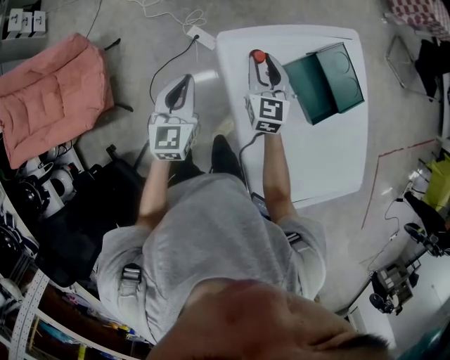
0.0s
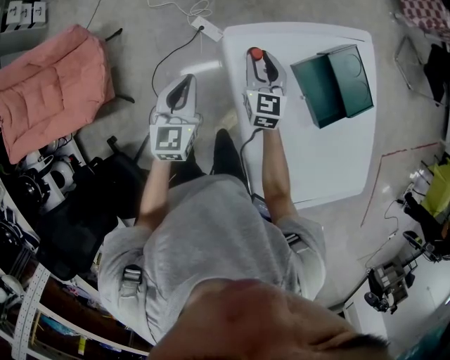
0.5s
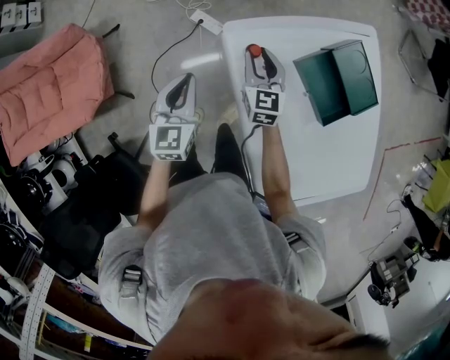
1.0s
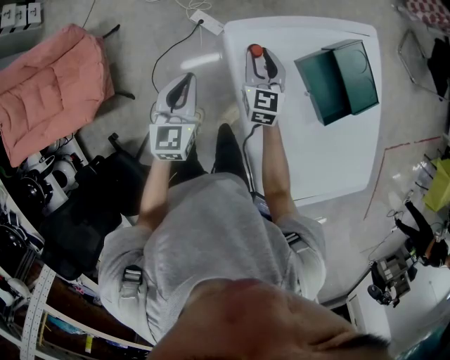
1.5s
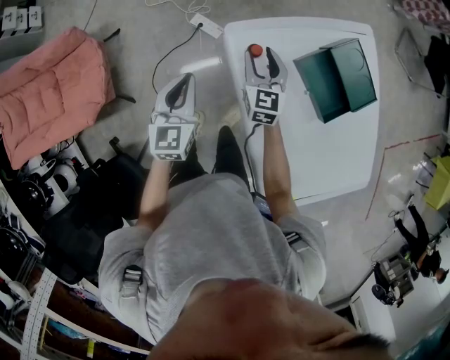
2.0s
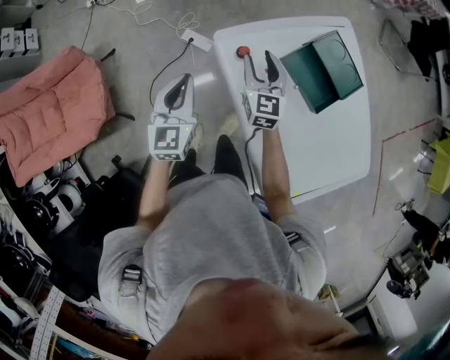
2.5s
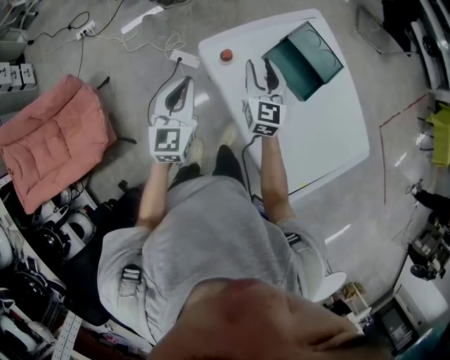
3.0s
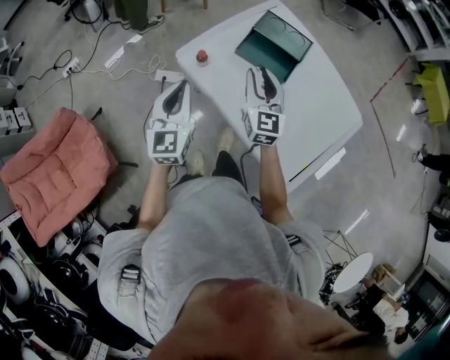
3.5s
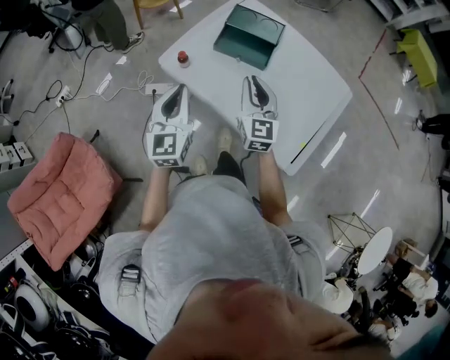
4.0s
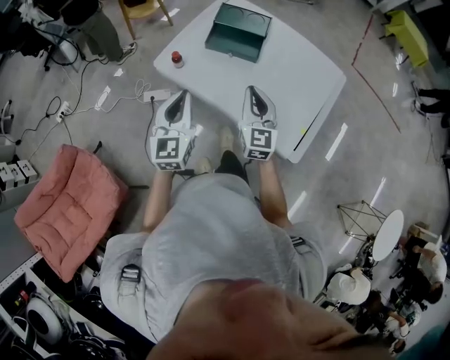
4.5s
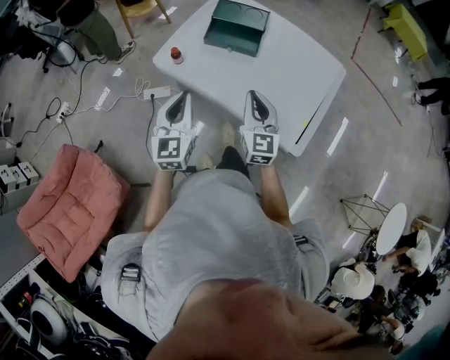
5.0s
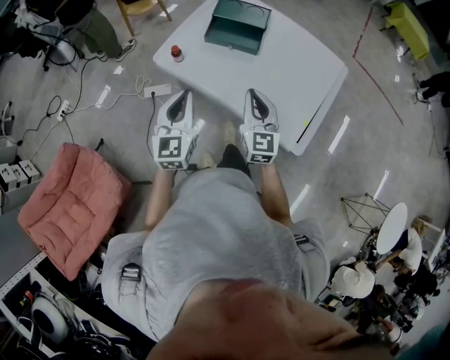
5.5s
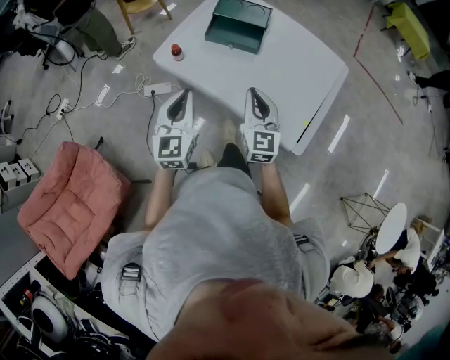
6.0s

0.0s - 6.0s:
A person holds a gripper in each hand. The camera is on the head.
0.0s - 2.0s: The right gripper shifts approximately 5 cm downward.
2.0s - 4.0s: The right gripper changes place by about 30 cm, turns by roughly 40 degrees, and closes up; the left gripper moves approximately 20 cm, and swivels about 30 degrees.
4.0s - 6.0s: The left gripper heads backward, covering about 5 cm. The right gripper shifts about 10 cm backward.

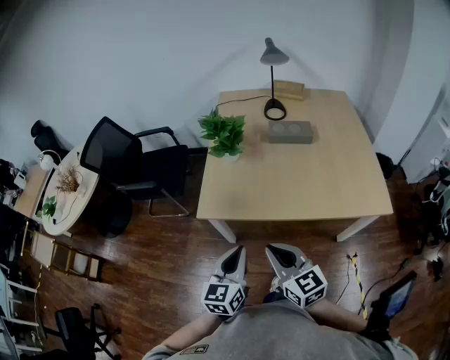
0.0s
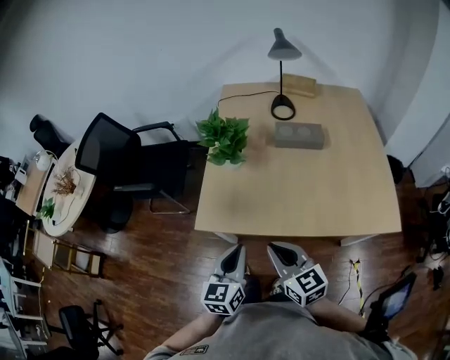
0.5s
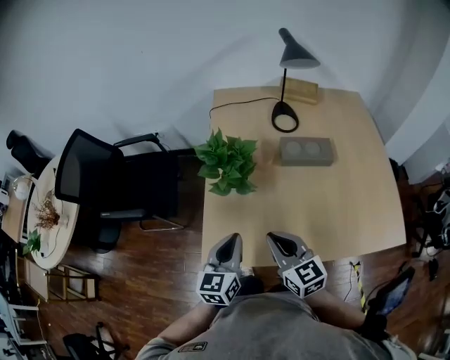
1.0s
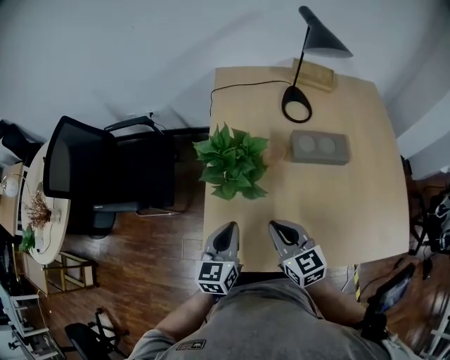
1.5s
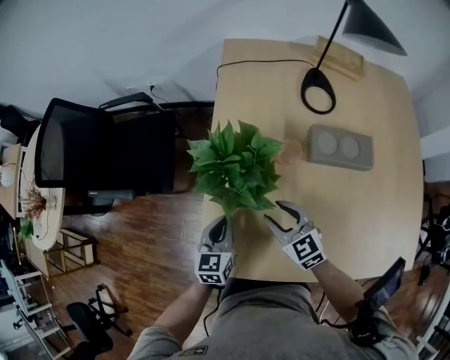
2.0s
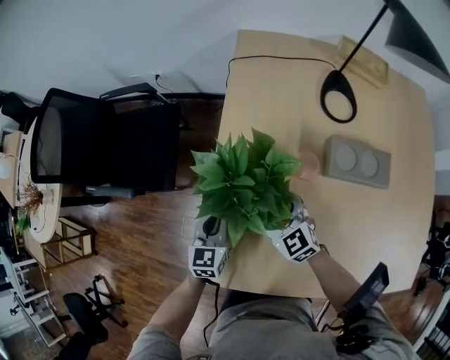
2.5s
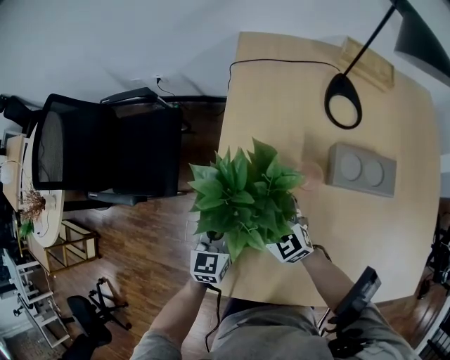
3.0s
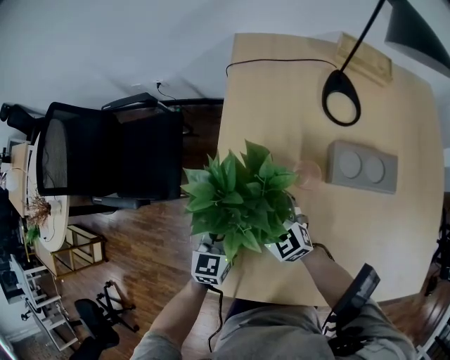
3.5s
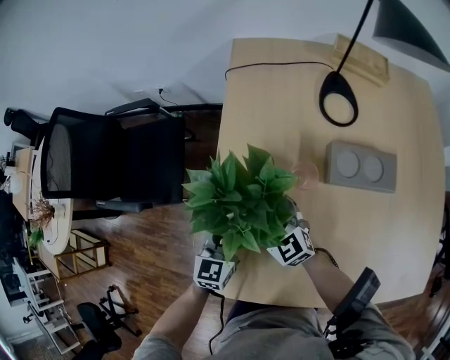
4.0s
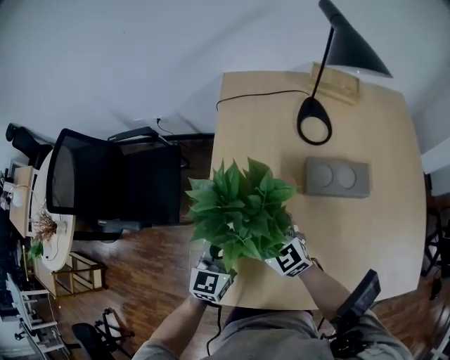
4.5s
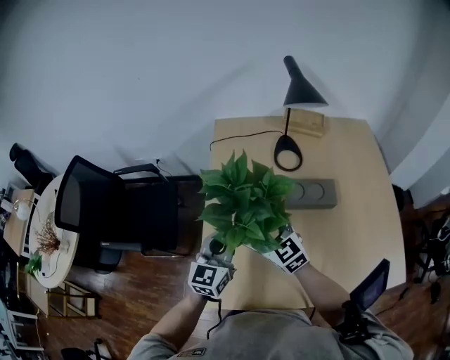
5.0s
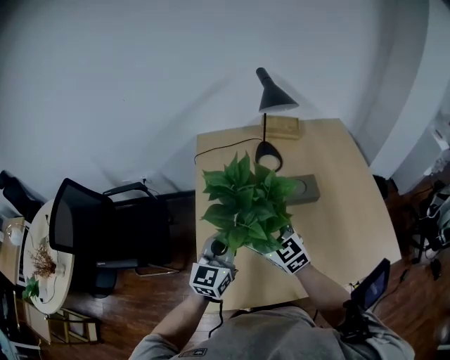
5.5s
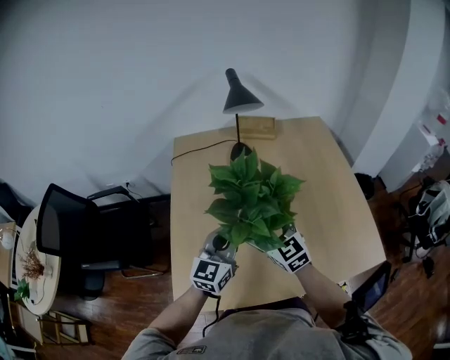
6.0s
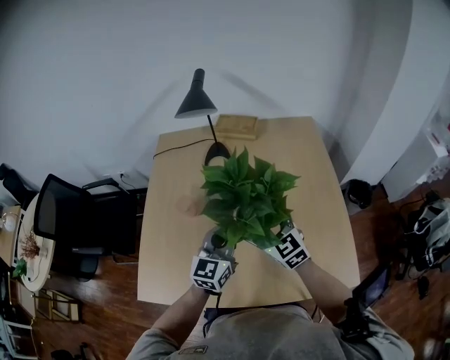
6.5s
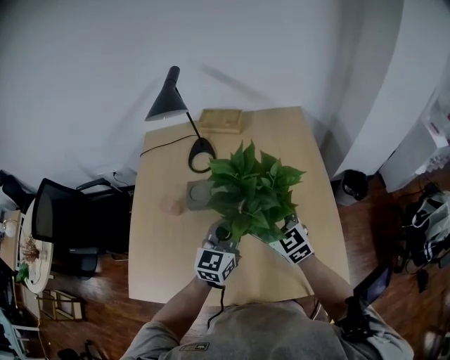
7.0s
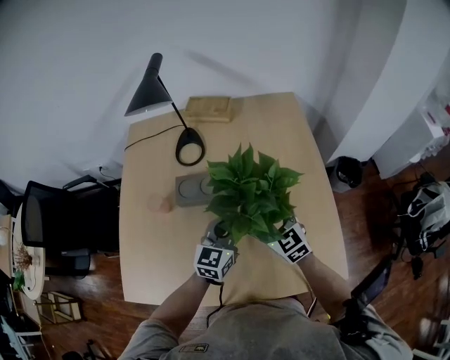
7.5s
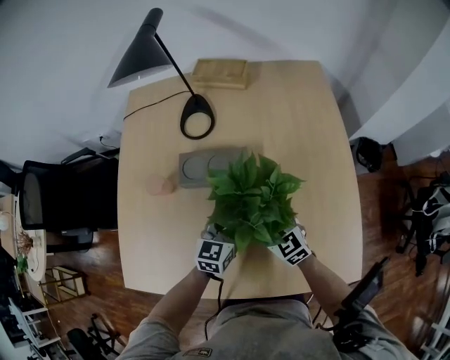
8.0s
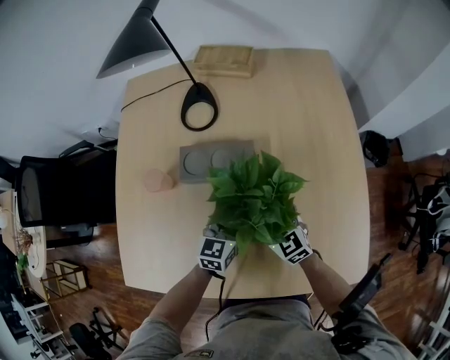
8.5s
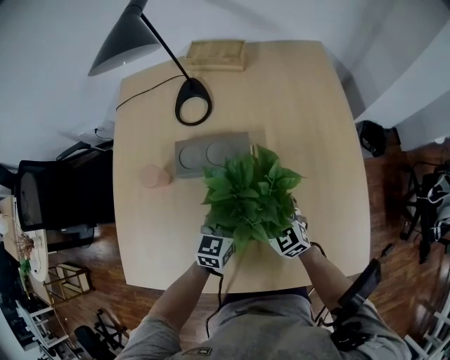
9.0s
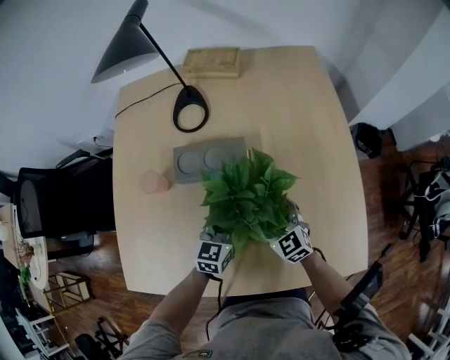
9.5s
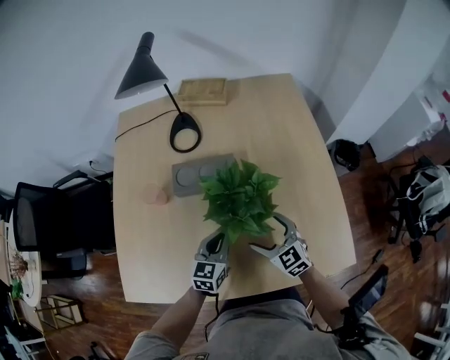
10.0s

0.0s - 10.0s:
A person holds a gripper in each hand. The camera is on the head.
0.0s - 2.0s: The left gripper goes about 40 cm forward and downward; the right gripper travels forward by roughly 40 cm, and changes its angle by approximately 20 degrees.
2.0s - 4.0s: The right gripper is displaced forward by approximately 10 cm, and opens up. The left gripper travels forward by about 5 cm.
4.0s - 6.0s: Both grippers travel together to the right and upward, approximately 30 cm. The left gripper swivels roughly 30 degrees, while the right gripper turns by some 20 degrees.
6.0s - 8.0s: The two grippers go about 25 cm to the right and downward. The left gripper turns by approximately 20 degrees.
8.0s - 10.0s: Both grippers move backward, approximately 5 cm.

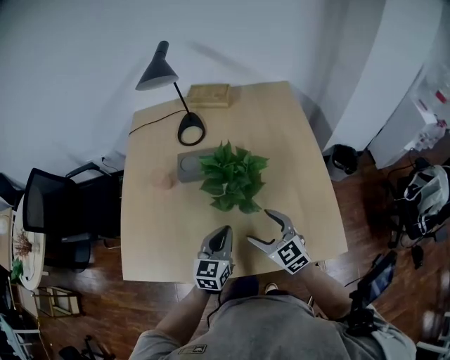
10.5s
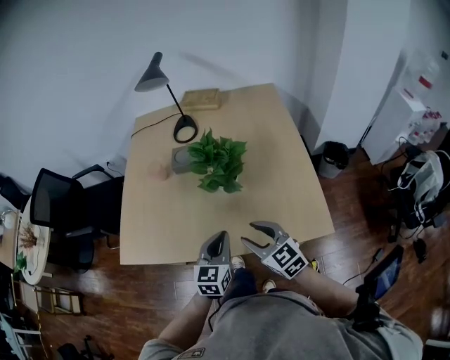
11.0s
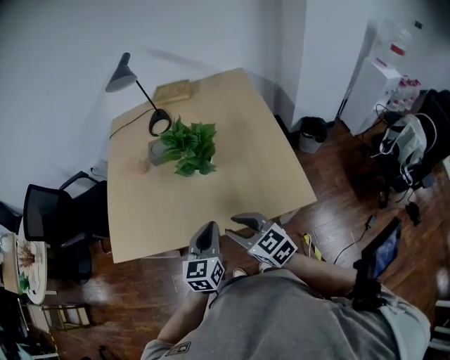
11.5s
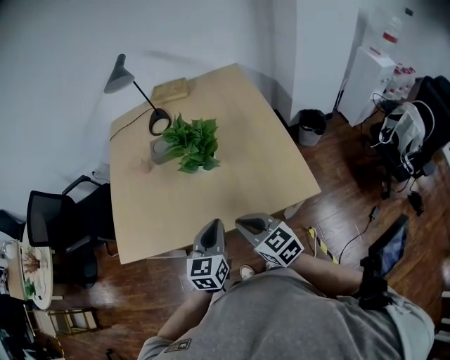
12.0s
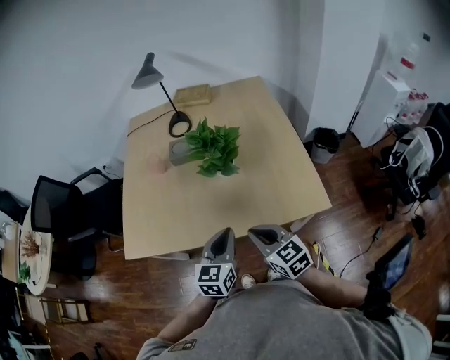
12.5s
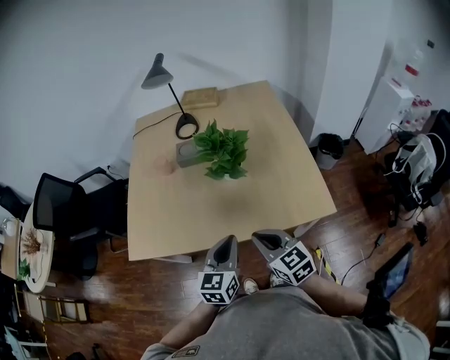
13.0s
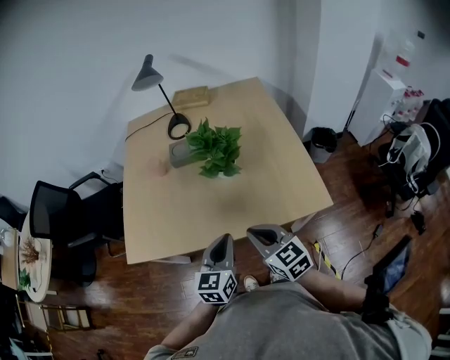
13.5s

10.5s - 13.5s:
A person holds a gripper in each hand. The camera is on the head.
10.5s - 12.0s: Both grippers move backward, roughly 15 cm. The right gripper closes its fingers.
12.0s - 13.5s: The grippers move only a little.

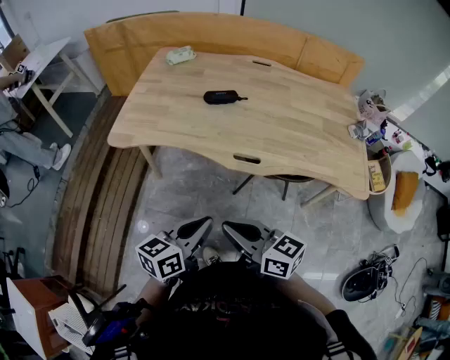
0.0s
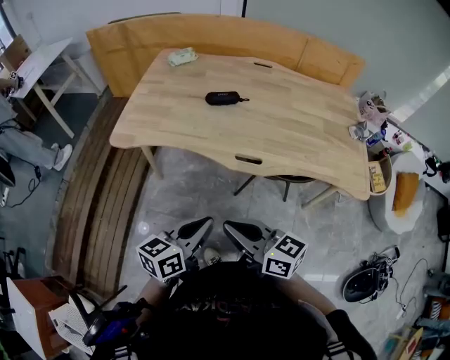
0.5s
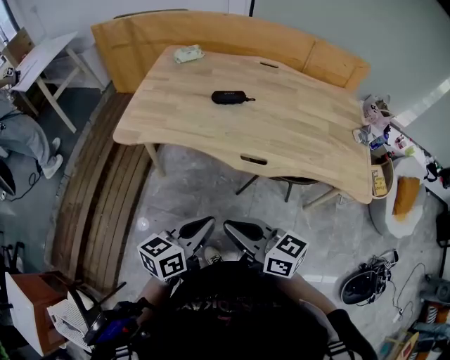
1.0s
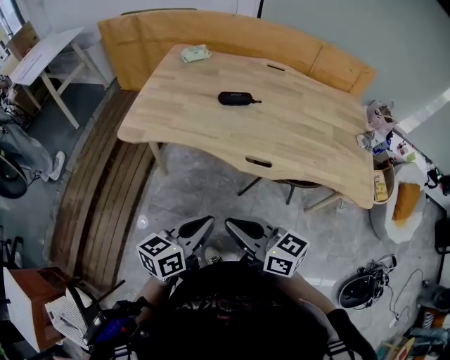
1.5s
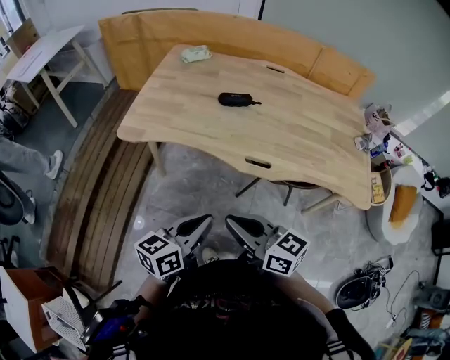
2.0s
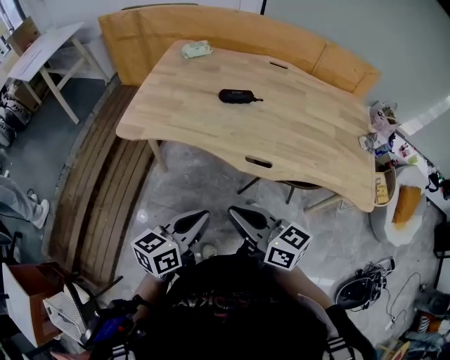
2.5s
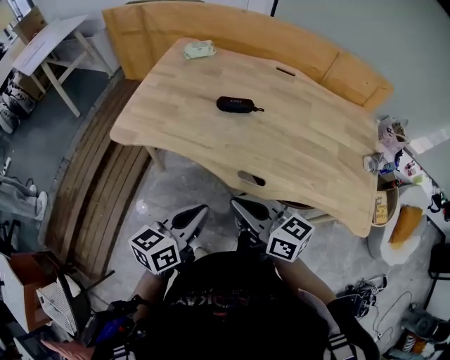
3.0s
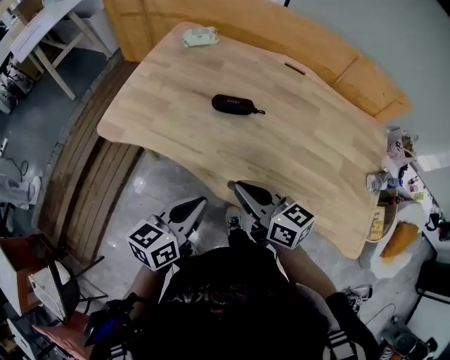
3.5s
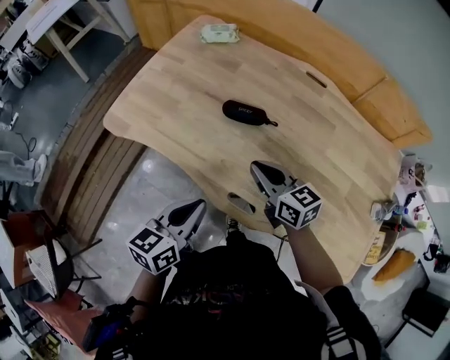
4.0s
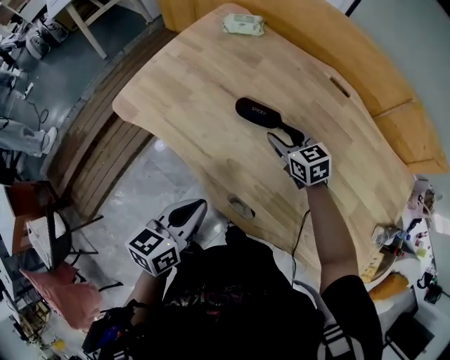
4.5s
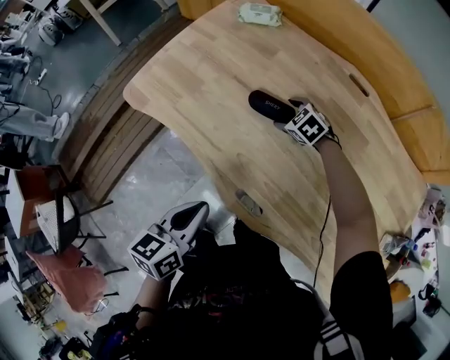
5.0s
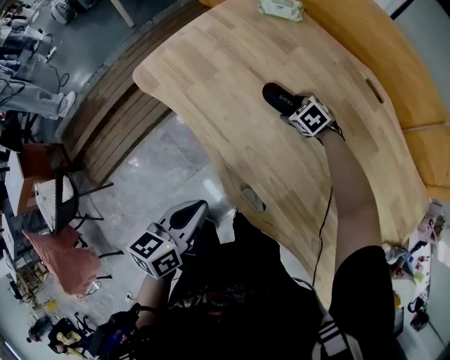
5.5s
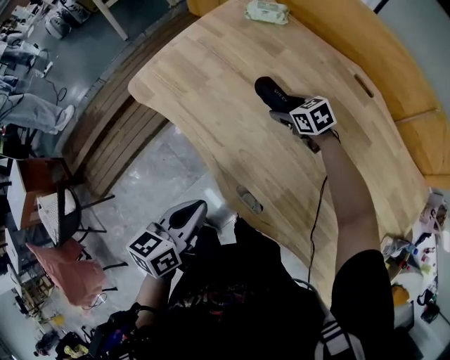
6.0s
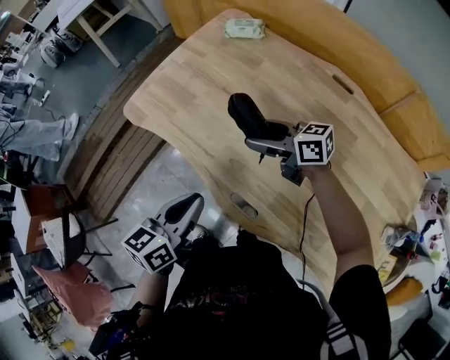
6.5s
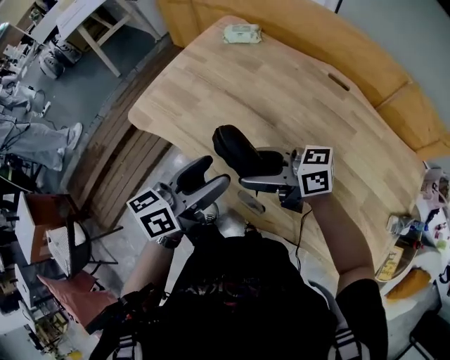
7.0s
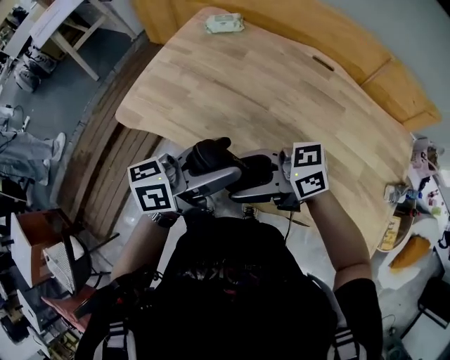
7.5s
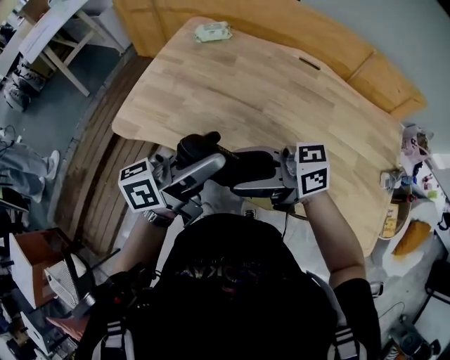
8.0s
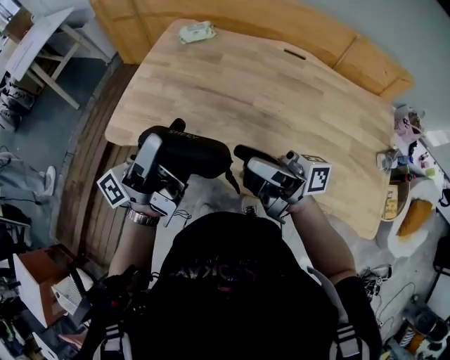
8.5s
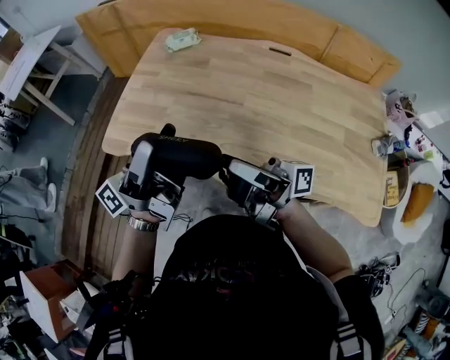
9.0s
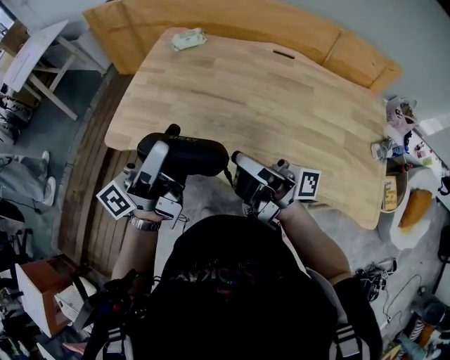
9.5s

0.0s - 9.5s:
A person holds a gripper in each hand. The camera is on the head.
0.0s - 2.0s: There are only small adjustments of the grippers.
2.0s - 4.0s: The right gripper travels forward and to the right by about 35 cm. Meanwhile the left gripper goes roughly 25 cm forward and to the right, and turns by about 20 degrees.
4.0s - 5.5s: The left gripper turns by some 20 degrees. Meanwhile the right gripper heads forward and downward, covering some 30 cm, tilts its fingers about 40 degrees downward, and opens its fingers.
5.5s - 7.5s: The left gripper is displaced upward by about 15 cm, tips its fingers upward by approximately 30 degrees, and opens up, while the right gripper moves upward, roughly 30 cm, and points its fingers some 60 degrees further upward.
7.5s - 9.5s: The left gripper shifts by some 15 cm, and rotates approximately 30 degrees. The right gripper goes about 5 cm upward, points its fingers roughly 40 degrees further upward, and closes its fingers.
